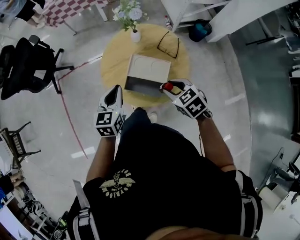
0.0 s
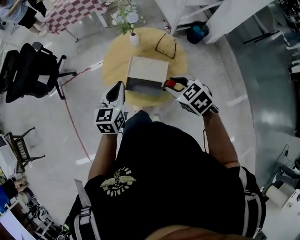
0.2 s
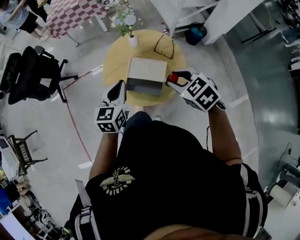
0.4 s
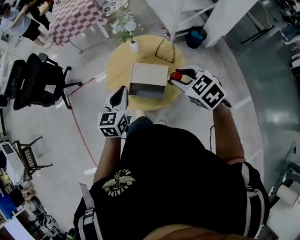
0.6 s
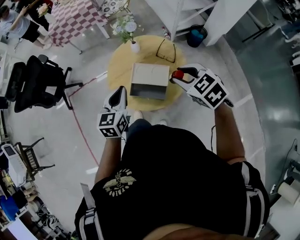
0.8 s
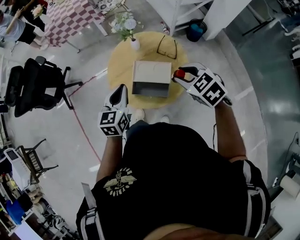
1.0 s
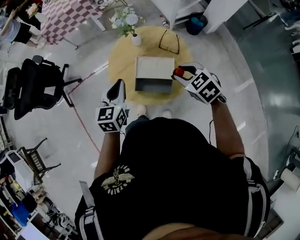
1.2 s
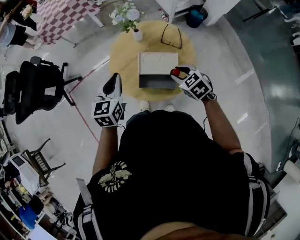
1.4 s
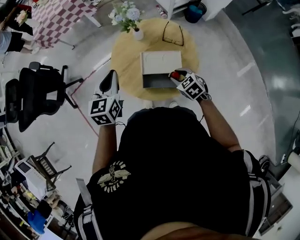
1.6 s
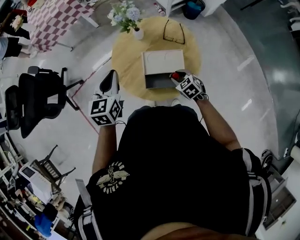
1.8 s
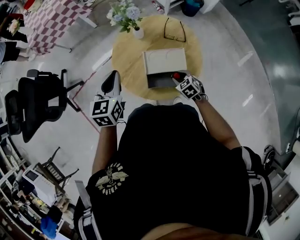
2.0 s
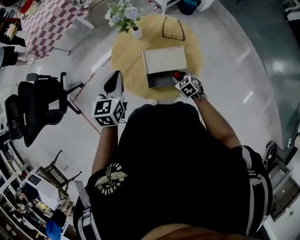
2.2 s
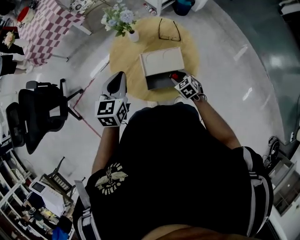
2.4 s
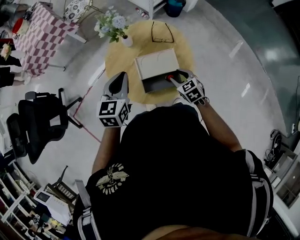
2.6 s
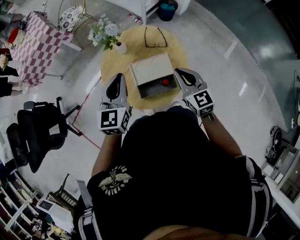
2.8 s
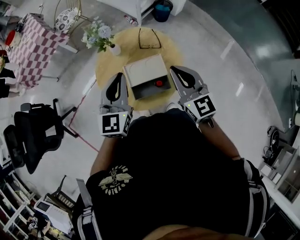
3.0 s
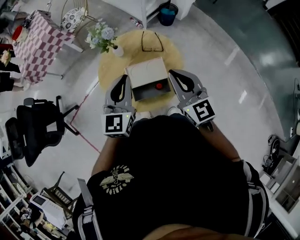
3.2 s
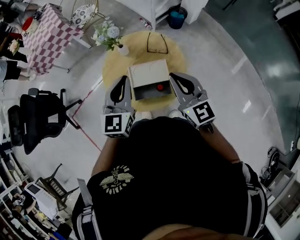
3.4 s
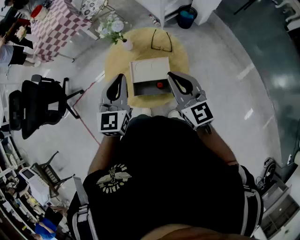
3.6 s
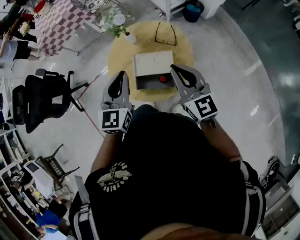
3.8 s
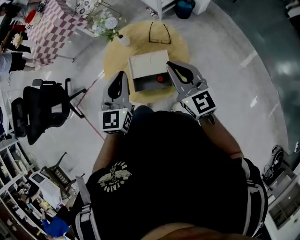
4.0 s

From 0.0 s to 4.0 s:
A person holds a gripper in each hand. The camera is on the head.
From 0.0 s to 1.4 s: The left gripper moves forward and upward, approximately 10 cm, while the right gripper travels upward and back again, some 15 cm each way.
From 1.4 s to 2.6 s: The left gripper shifts approximately 5 cm forward, and changes its angle by about 20 degrees. Meanwhile the right gripper goes approximately 10 cm downward, and turns by approximately 30 degrees.
From 2.6 s to 4.0 s: The right gripper is displaced upward by about 25 cm, points its fingers approximately 40 degrees further upward, and closes up. Meanwhile the left gripper is displaced to the right and upward by about 10 cm.

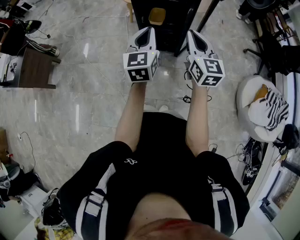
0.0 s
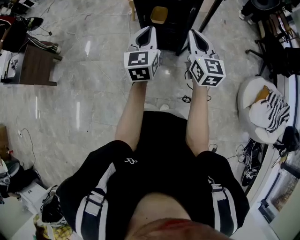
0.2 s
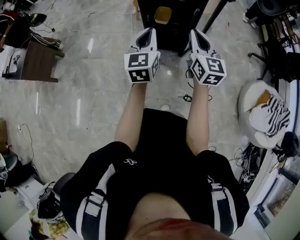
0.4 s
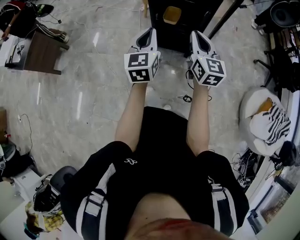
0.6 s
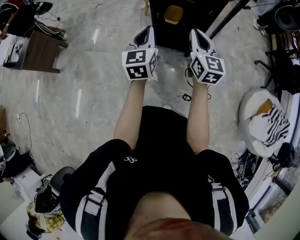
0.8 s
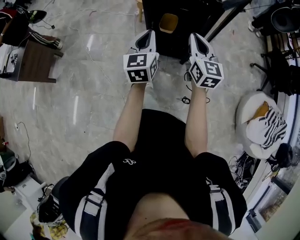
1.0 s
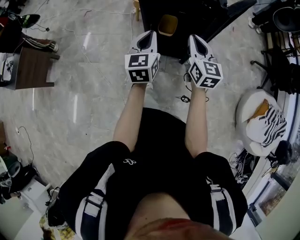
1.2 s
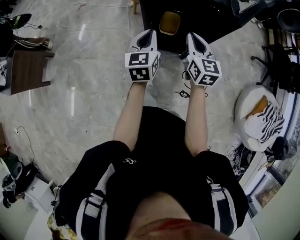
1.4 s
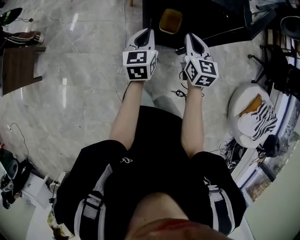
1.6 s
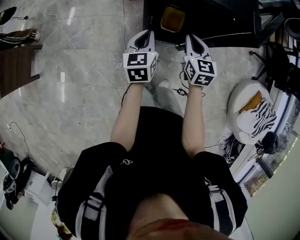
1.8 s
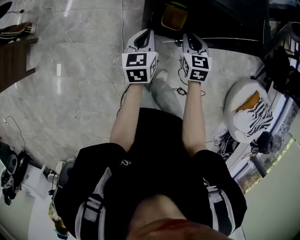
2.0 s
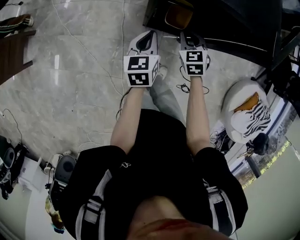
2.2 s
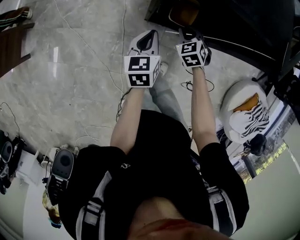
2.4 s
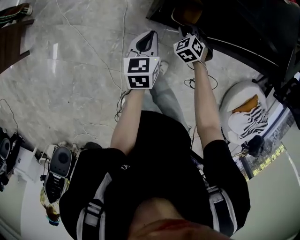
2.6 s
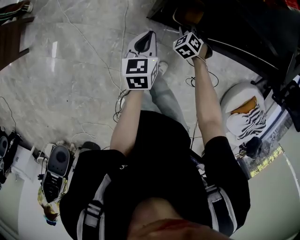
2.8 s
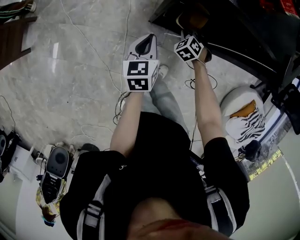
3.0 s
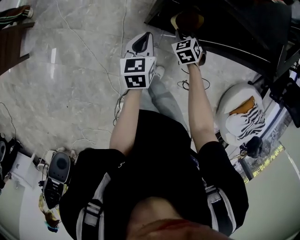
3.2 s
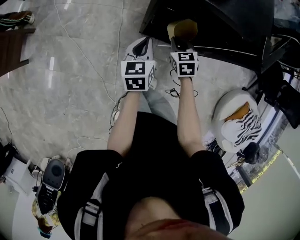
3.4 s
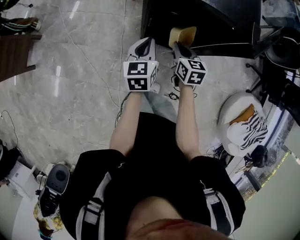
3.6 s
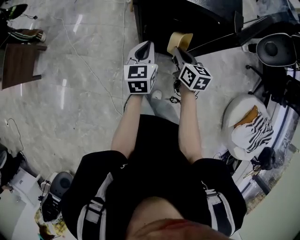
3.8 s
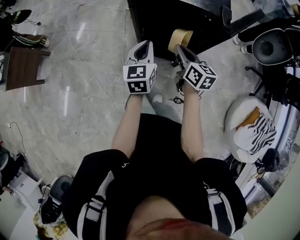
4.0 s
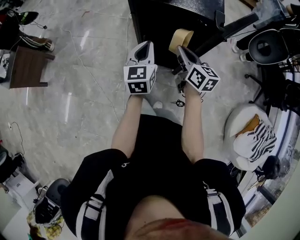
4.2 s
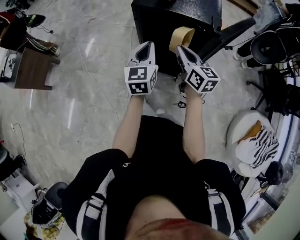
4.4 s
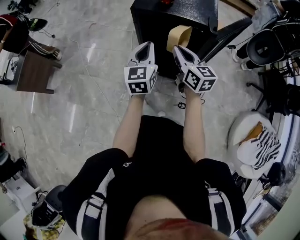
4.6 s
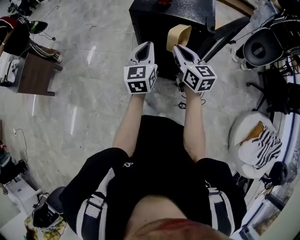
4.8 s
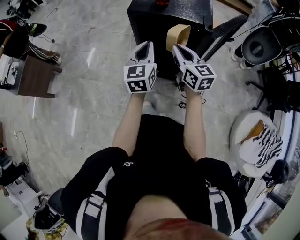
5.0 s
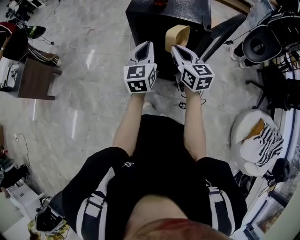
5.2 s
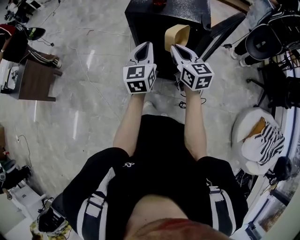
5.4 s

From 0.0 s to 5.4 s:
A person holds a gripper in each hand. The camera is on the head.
From 0.0 s to 1.4 s: The right gripper goes approximately 25 cm forward, while the left gripper moves forward and downward, approximately 25 cm.
From 1.4 s to 2.8 s: The right gripper heads downward, covering about 35 cm, and tips its fingers downward by approximately 50 degrees. The left gripper is displaced downward by about 20 cm, and changes its angle by about 20 degrees.
From 2.8 s to 4.0 s: The right gripper heads upward and backward, covering some 30 cm, and rotates around the line of its fingers by approximately 70 degrees, clockwise from behind; the left gripper shifts some 20 cm upward and to the right, and swivels about 20 degrees.
From 4.0 s to 5.4 s: The grippers both shift upward by about 10 cm. The right gripper rotates some 20 degrees.

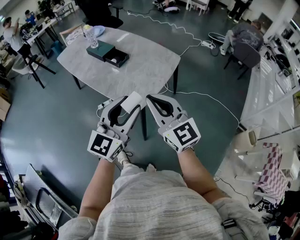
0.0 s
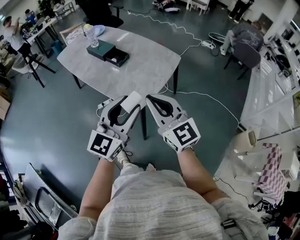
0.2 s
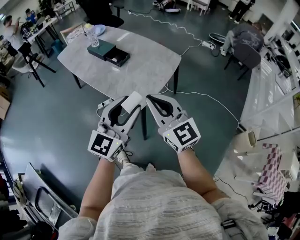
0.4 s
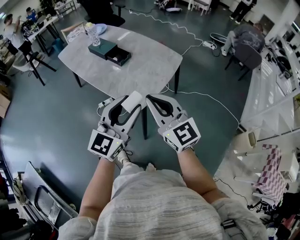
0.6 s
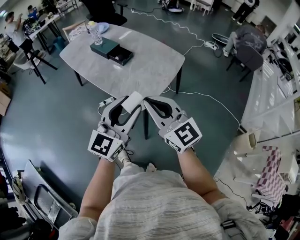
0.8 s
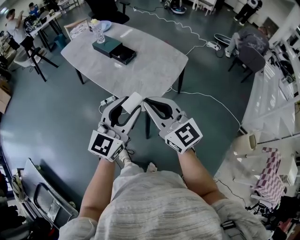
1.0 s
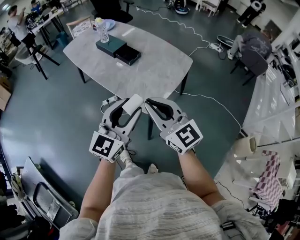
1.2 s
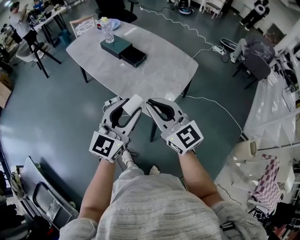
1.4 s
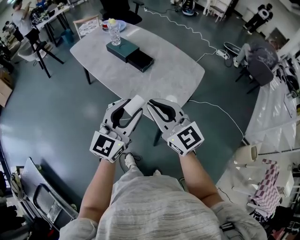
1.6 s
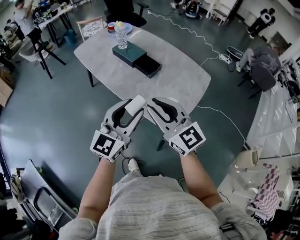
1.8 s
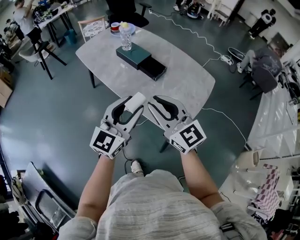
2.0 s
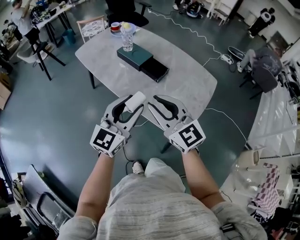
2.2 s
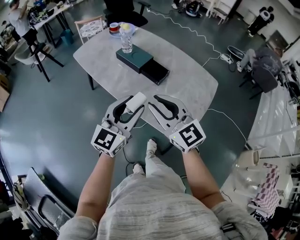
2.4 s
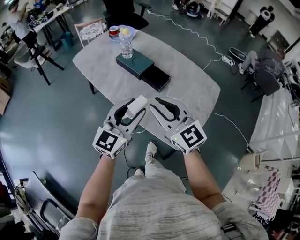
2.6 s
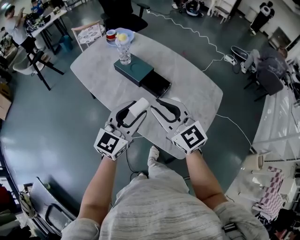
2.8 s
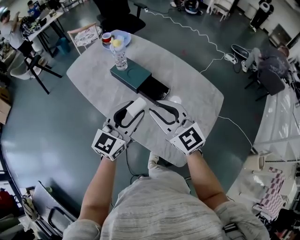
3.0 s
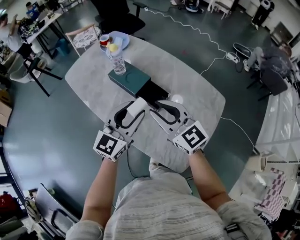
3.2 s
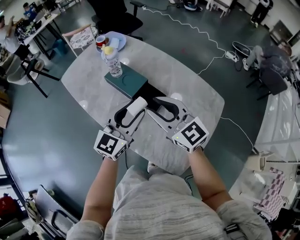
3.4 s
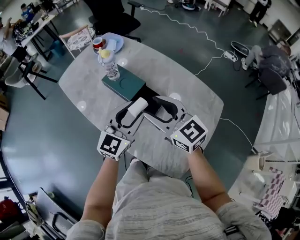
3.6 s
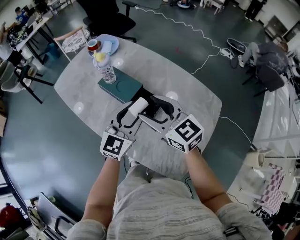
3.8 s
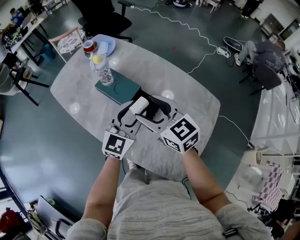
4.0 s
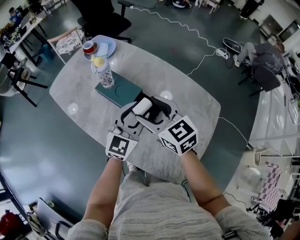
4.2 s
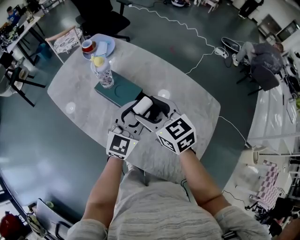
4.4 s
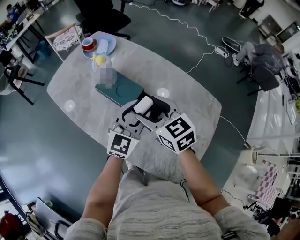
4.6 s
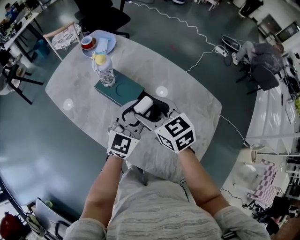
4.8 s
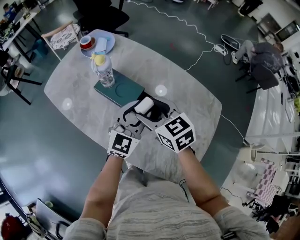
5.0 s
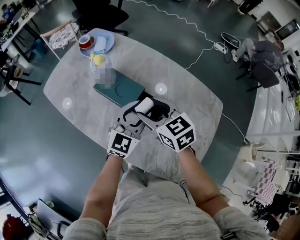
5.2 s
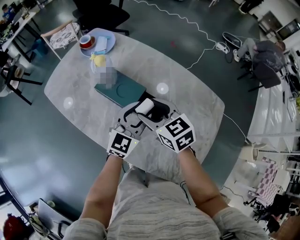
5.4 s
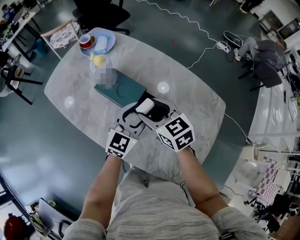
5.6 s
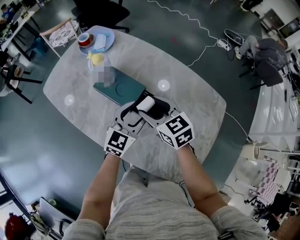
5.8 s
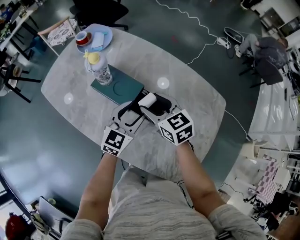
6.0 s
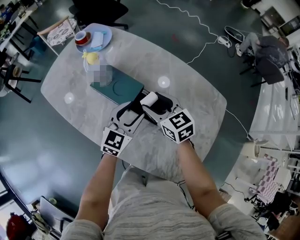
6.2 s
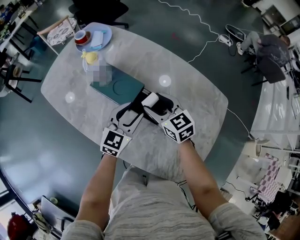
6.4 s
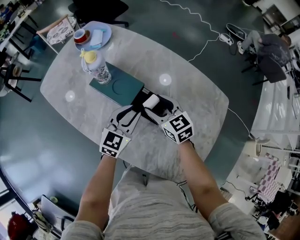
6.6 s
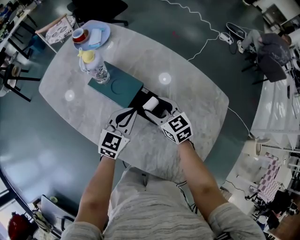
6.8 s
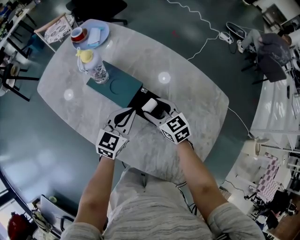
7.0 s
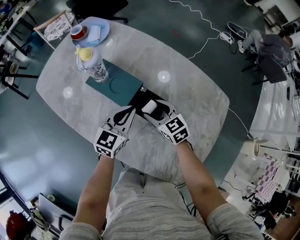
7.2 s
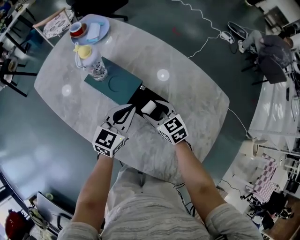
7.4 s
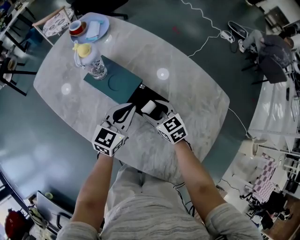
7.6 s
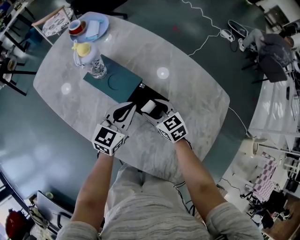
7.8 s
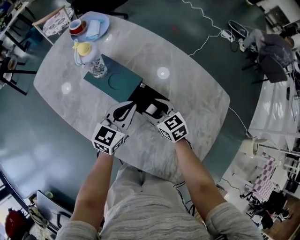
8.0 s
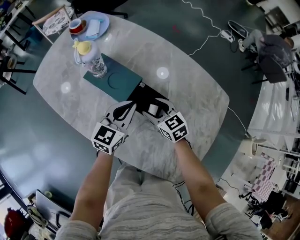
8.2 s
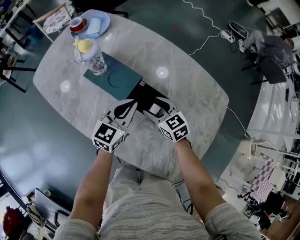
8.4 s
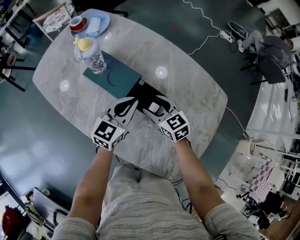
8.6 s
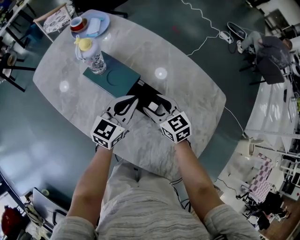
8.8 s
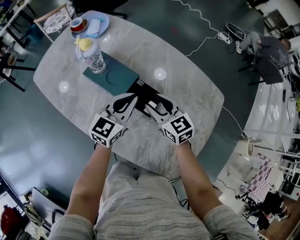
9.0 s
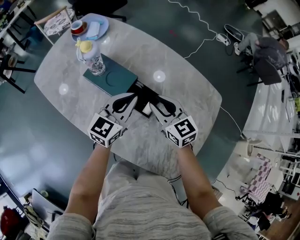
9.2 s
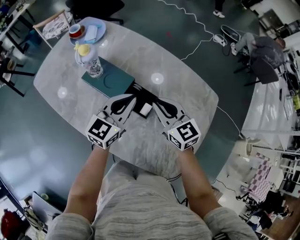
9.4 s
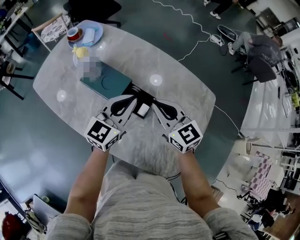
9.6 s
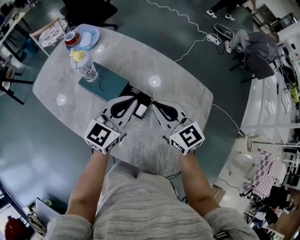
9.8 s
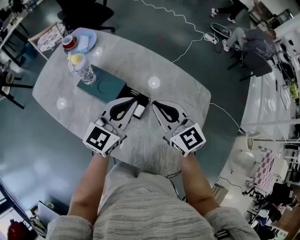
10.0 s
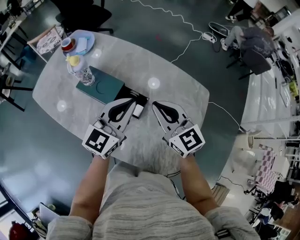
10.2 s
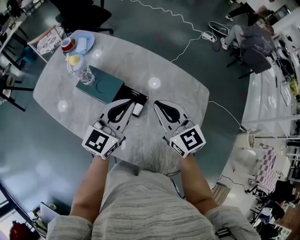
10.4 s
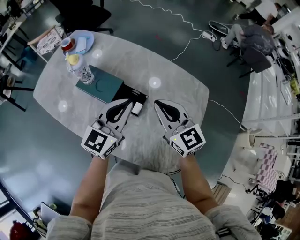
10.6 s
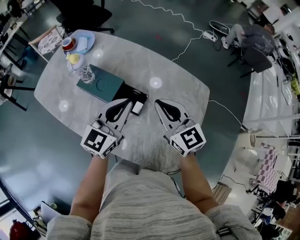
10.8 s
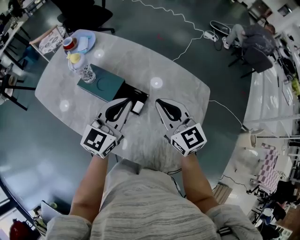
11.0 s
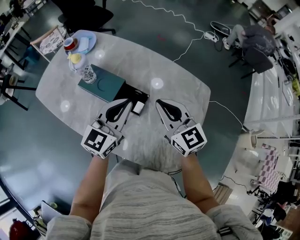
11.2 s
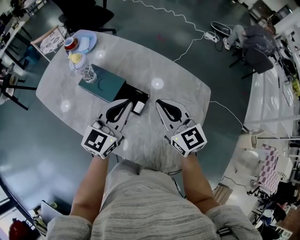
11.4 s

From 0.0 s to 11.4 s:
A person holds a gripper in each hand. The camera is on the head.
From 0.0 s to 1.4 s: The two grippers go about 10 cm to the left and forward.
From 1.4 s to 2.8 s: Both grippers travel together forward and to the left, about 30 cm.
From 2.8 s to 4.2 s: The grippers both shift forward by some 20 cm. The right gripper swivels some 20 degrees, and opens its fingers.
From 4.2 s to 5.6 s: The grippers both shift downward by roughly 5 cm.
From 5.6 s to 7.2 s: The left gripper shifts roughly 5 cm downward, and closes up. Meanwhile the right gripper goes approximately 15 cm downward.
From 7.2 s to 8.6 s: There are only small adjustments of the grippers.
From 8.6 s to 10.0 s: The right gripper shifts about 20 cm upward, turns by about 20 degrees, and closes. The left gripper is displaced upward by some 15 cm.
From 10.0 s to 11.4 s: The grippers stay close to where they were, moving slightly.

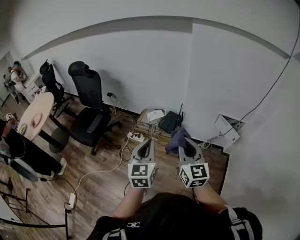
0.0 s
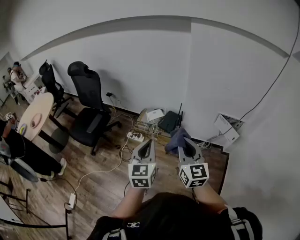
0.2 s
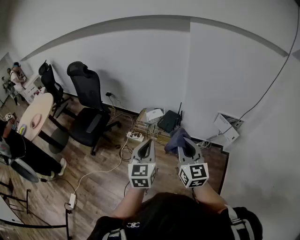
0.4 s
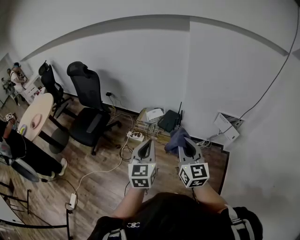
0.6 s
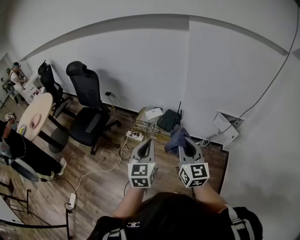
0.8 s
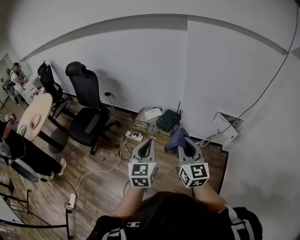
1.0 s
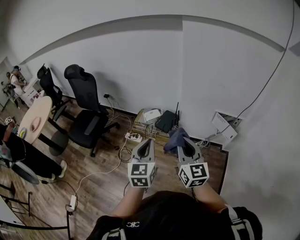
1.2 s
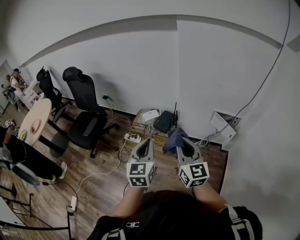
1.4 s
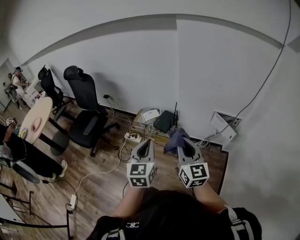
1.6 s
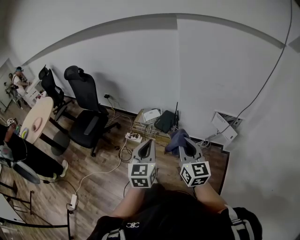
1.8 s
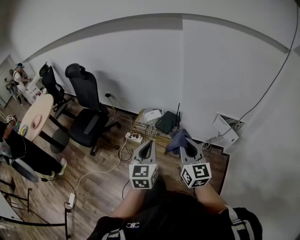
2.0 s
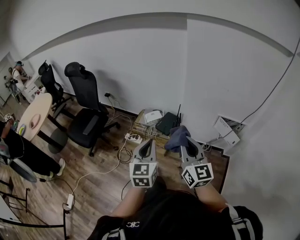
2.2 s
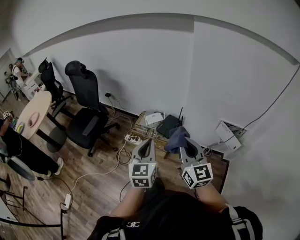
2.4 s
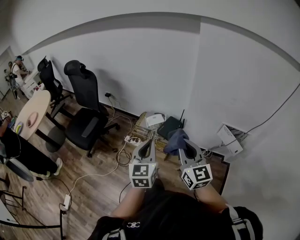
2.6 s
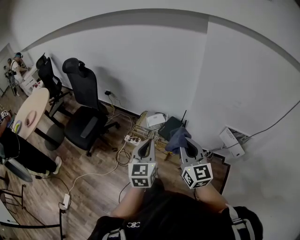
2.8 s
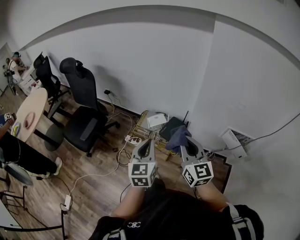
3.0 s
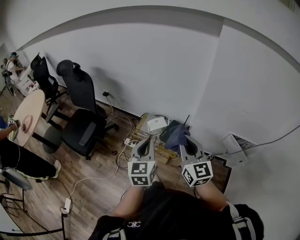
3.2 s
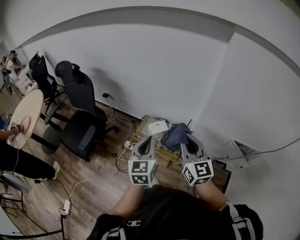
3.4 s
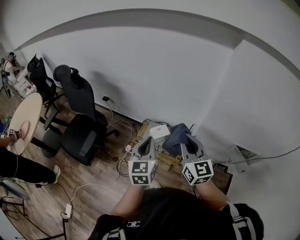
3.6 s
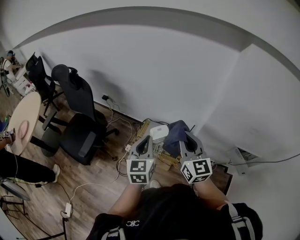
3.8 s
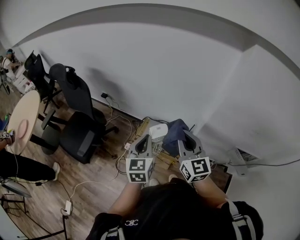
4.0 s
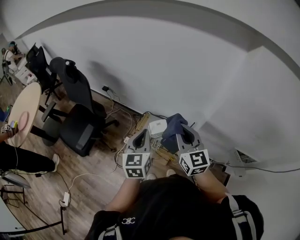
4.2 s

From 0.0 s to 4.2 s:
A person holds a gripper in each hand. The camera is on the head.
From 0.0 s to 1.4 s: The grippers both shift to the right by roughly 5 cm.
From 1.4 s to 2.8 s: Both grippers move forward, some 15 cm.
From 2.8 s to 4.2 s: The grippers both shift forward by about 30 cm.
